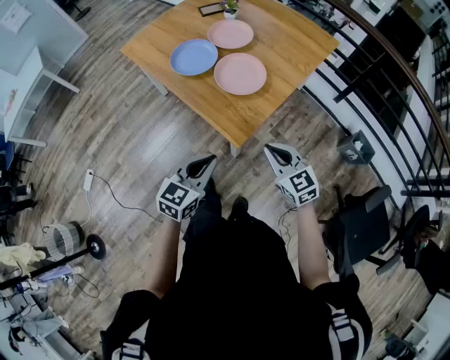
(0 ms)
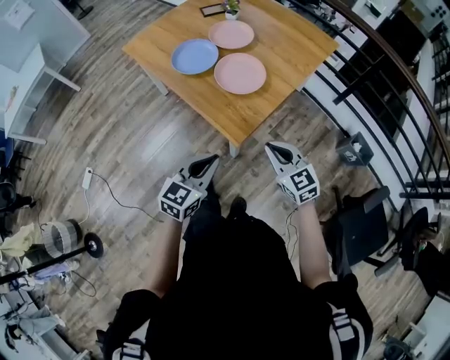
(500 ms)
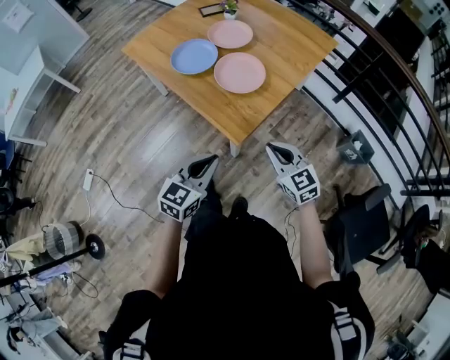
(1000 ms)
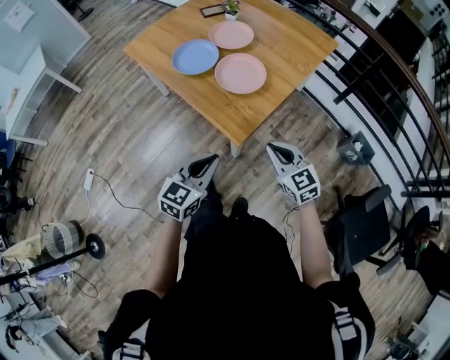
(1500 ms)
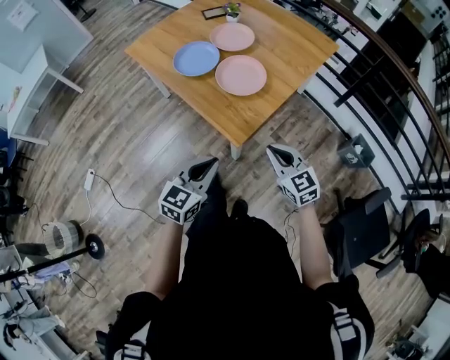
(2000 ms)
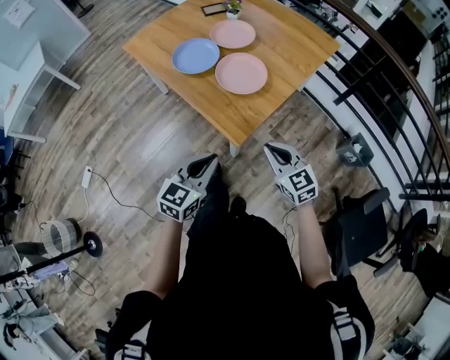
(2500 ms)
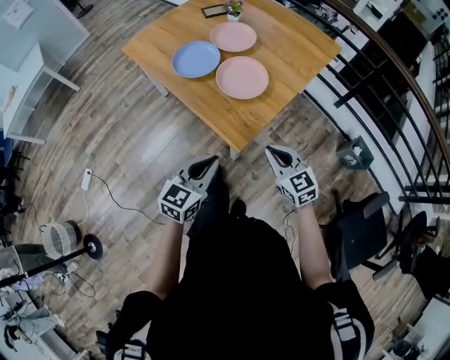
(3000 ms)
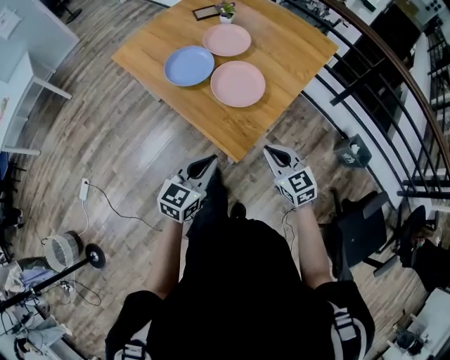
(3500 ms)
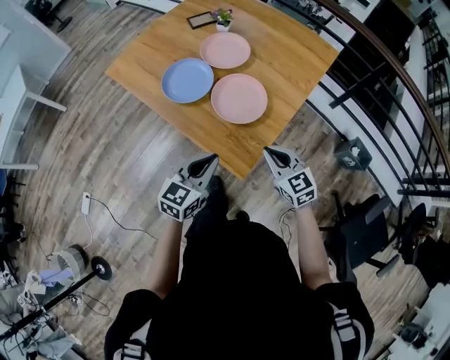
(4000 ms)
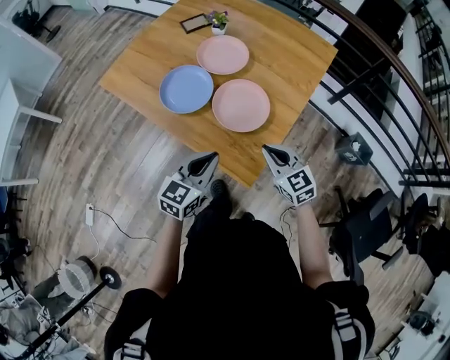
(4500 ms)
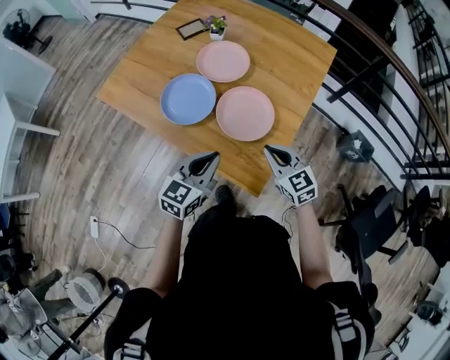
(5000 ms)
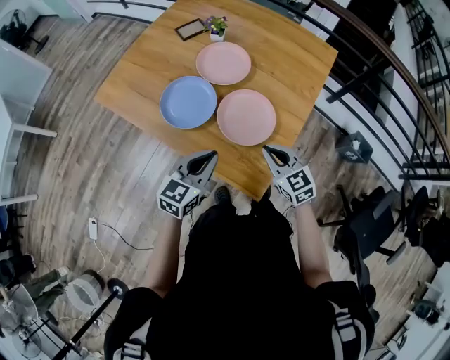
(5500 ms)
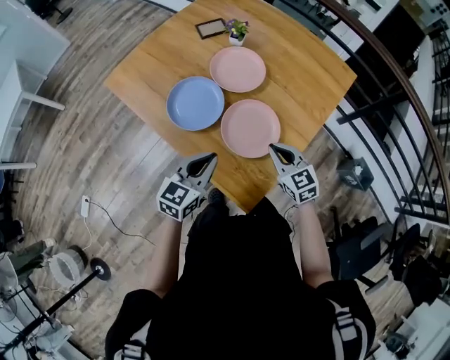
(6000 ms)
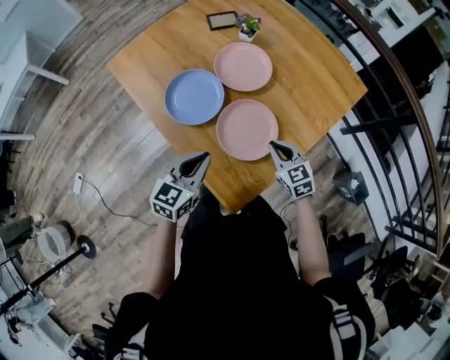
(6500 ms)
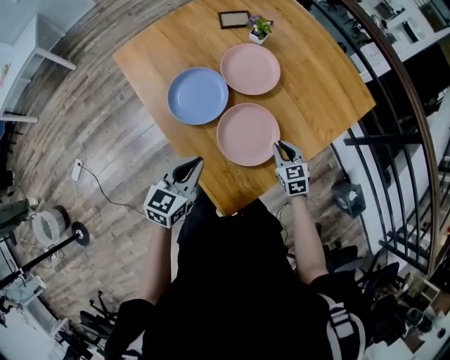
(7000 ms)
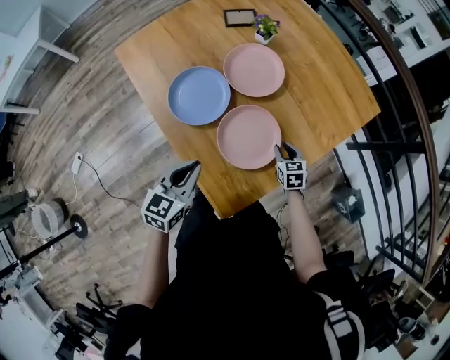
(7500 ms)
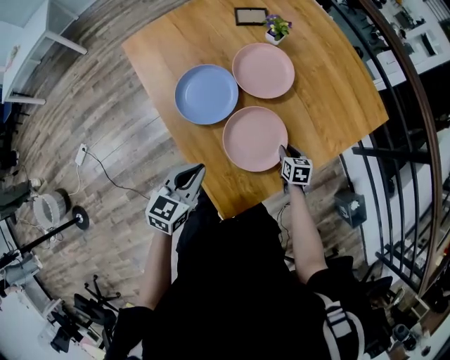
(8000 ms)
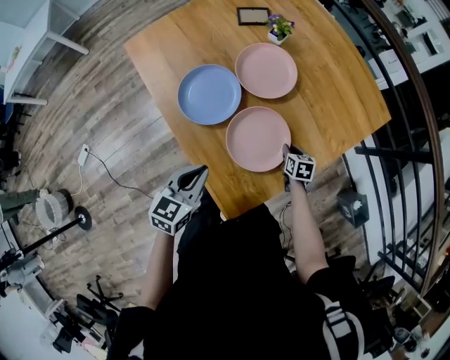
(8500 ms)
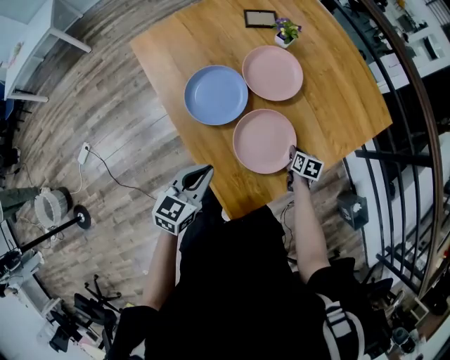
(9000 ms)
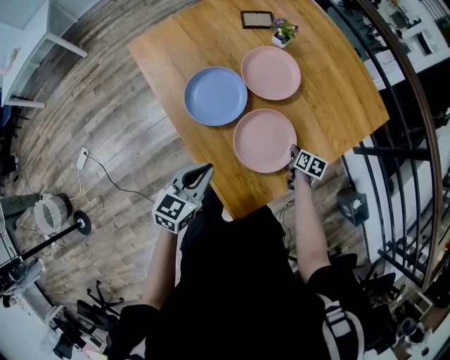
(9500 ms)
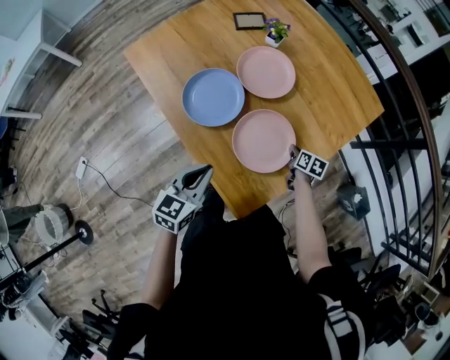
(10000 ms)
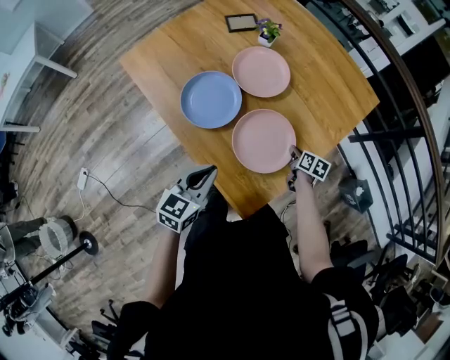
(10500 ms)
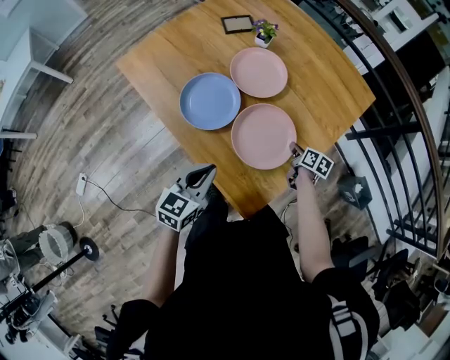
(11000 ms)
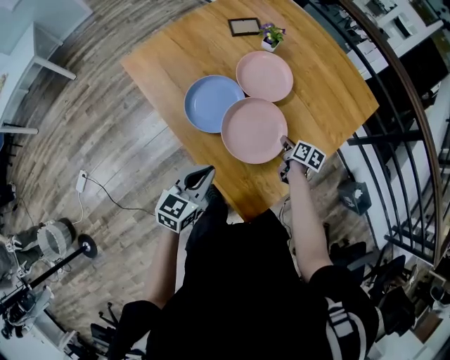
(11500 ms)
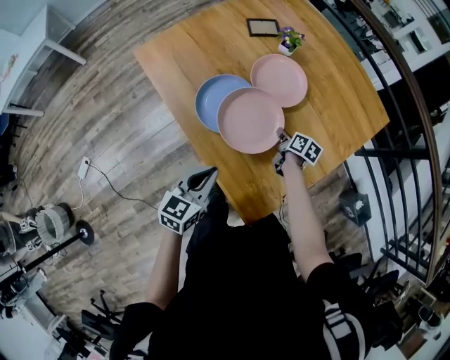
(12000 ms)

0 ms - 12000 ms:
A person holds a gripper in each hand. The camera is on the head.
0 ms - 2000 ms: There are only small adjustments of the grippers.
2000 ms - 4000 ms: Both grippers travel together forward, some 15 cm.
4000 ms - 6000 ms: Both grippers move forward, roughly 15 cm.
6000 ms - 8000 ms: The left gripper changes its angle by roughly 20 degrees; the right gripper travels downward, forward and to the right by some 25 cm, turns by some 30 degrees, and opens up.
8000 ms - 10000 ms: The right gripper turns by about 30 degrees, and closes its fingers.
10000 ms - 12000 ms: The right gripper goes roughly 15 cm to the left and forward.

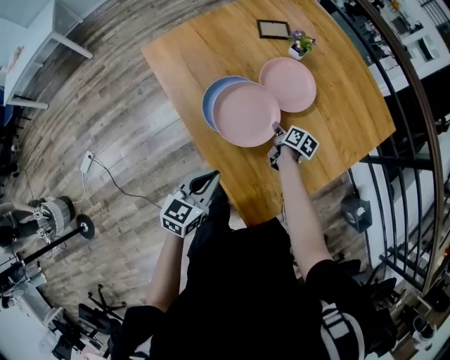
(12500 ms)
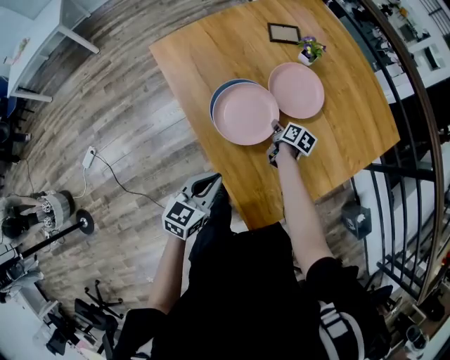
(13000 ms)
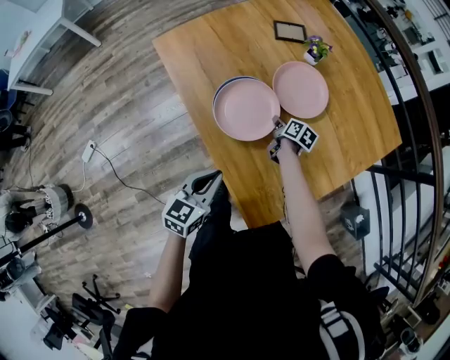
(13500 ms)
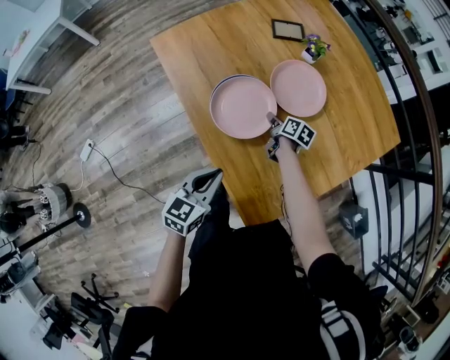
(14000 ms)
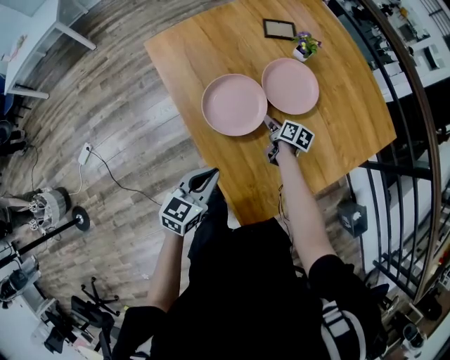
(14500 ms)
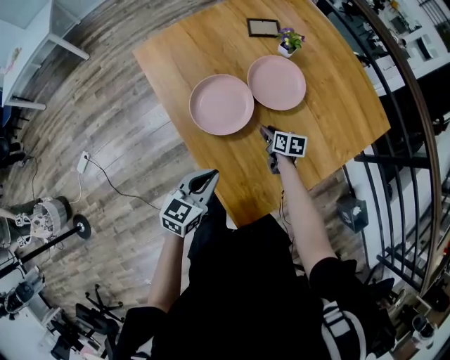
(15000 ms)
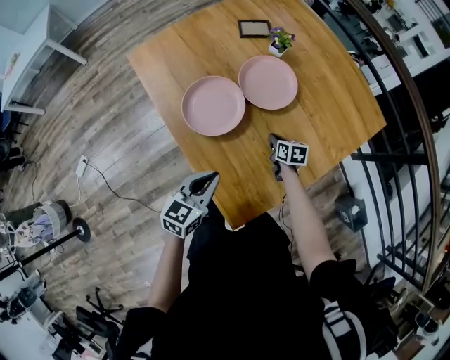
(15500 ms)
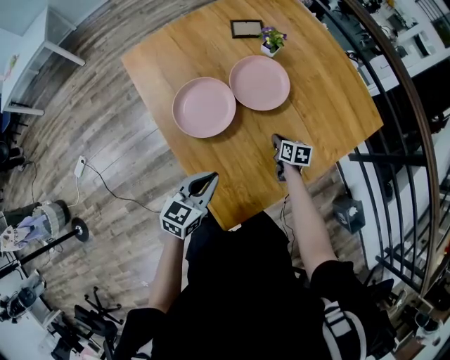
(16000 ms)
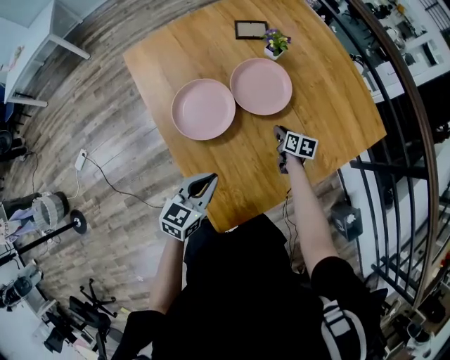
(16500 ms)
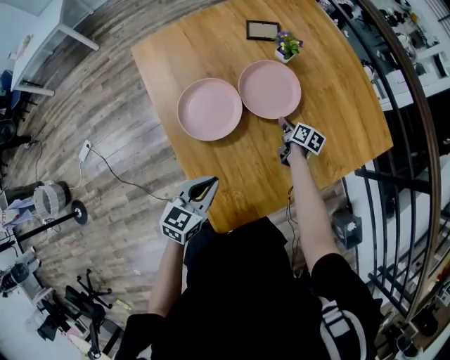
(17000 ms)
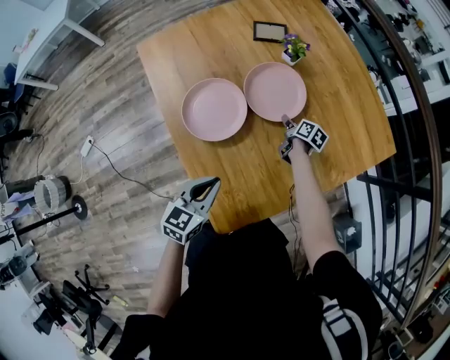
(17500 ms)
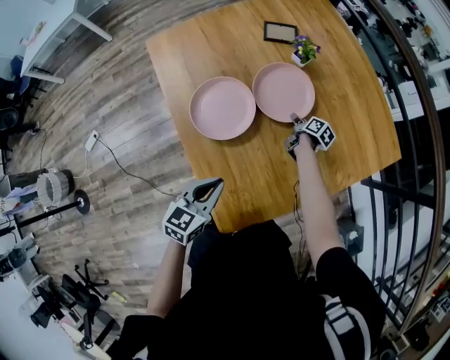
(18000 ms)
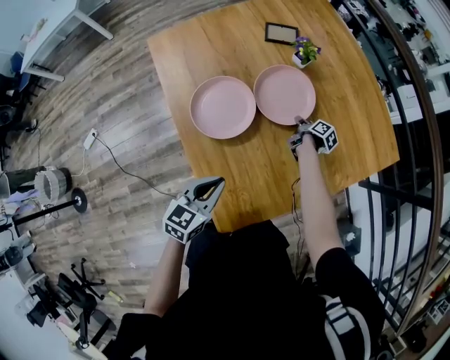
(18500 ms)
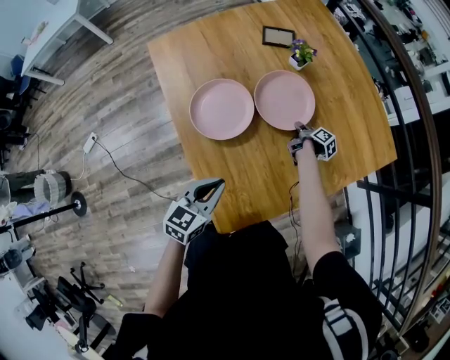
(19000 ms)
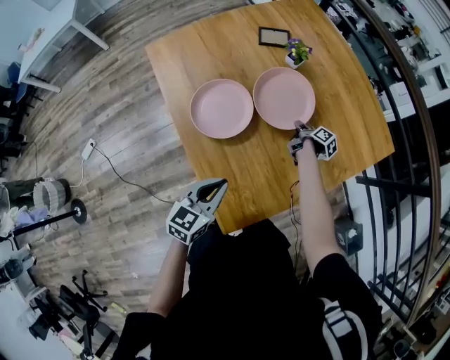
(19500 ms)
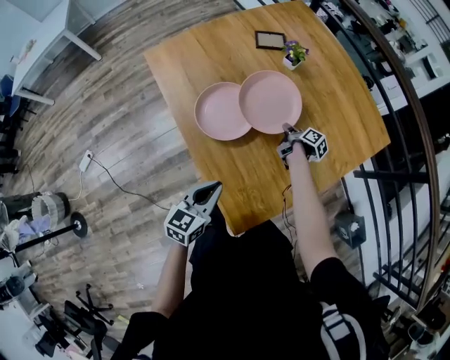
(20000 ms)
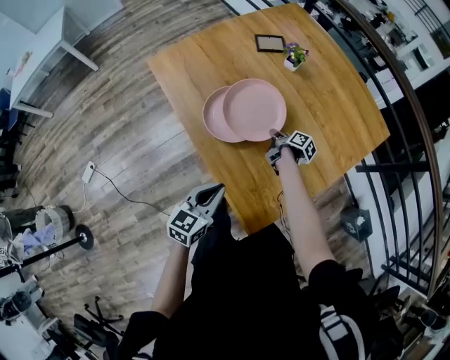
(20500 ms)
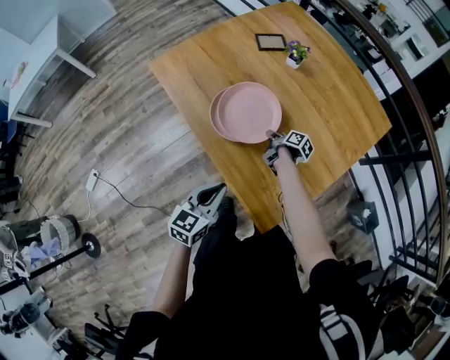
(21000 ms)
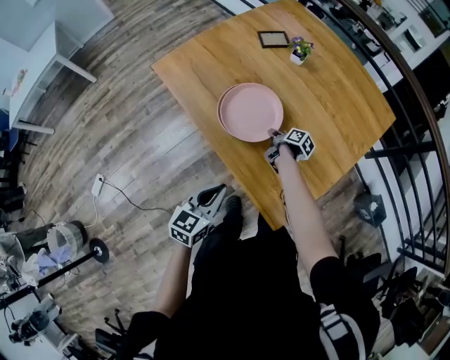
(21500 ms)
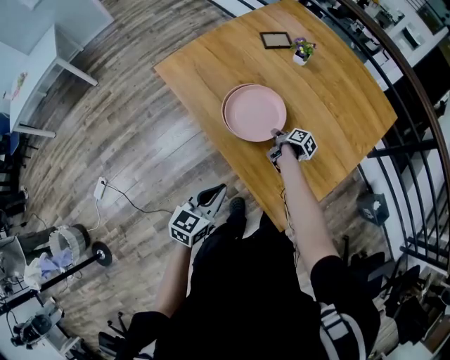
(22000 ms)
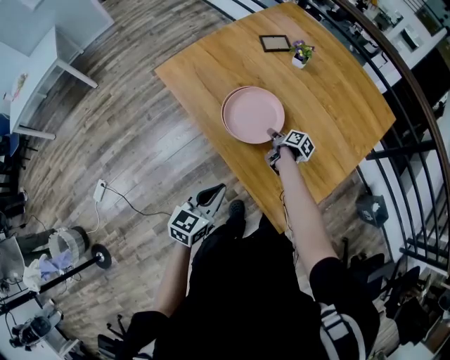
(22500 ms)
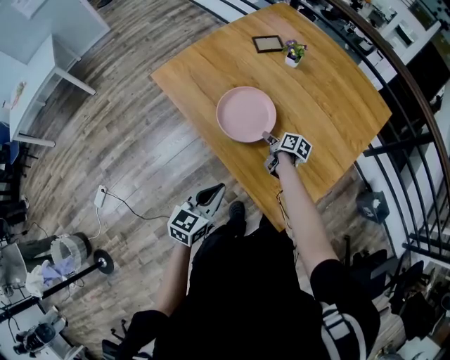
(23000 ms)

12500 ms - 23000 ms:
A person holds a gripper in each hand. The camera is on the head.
12500 ms - 14500 ms: The right gripper opens its fingers.
14500 ms - 16500 ms: The two grippers go approximately 15 cm to the right.
16500 ms - 19000 ms: The right gripper is displaced forward by approximately 5 cm, and rolls clockwise, seen from behind, by roughly 50 degrees.
19000 ms - 21000 ms: The right gripper goes roughly 20 cm to the left and backward. Meanwhile the left gripper goes some 15 cm to the left.
21000 ms - 23000 ms: The left gripper heads to the left, covering about 5 cm, while the right gripper opens its fingers.

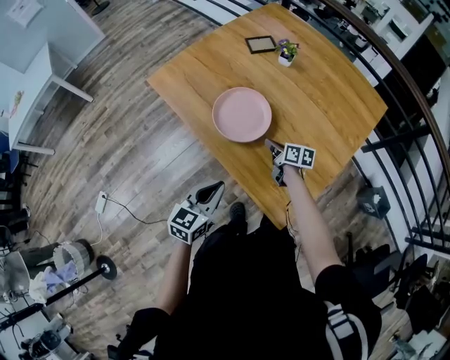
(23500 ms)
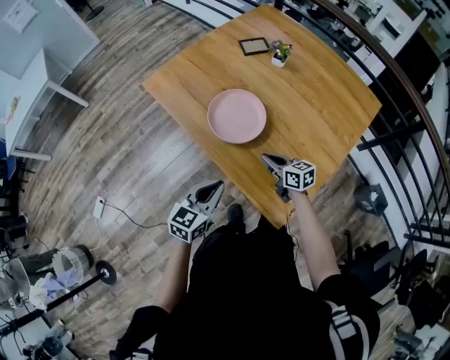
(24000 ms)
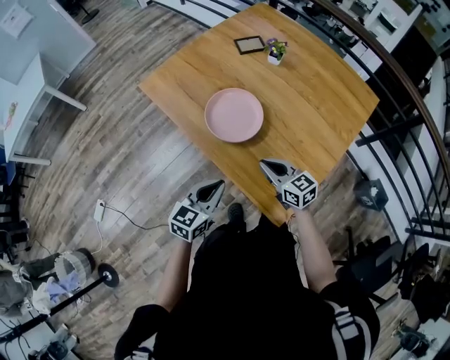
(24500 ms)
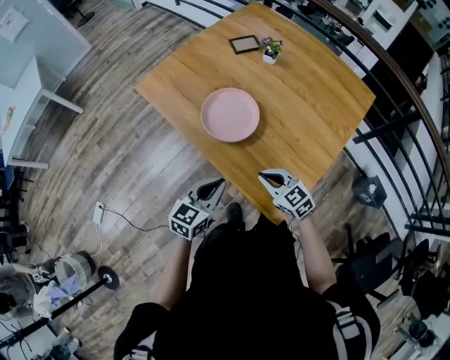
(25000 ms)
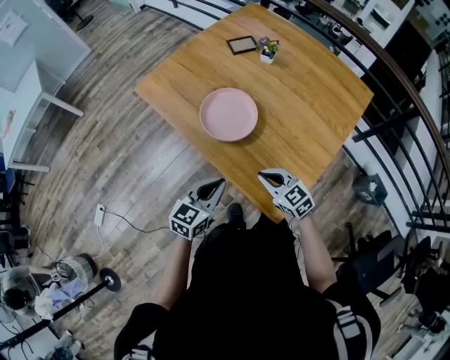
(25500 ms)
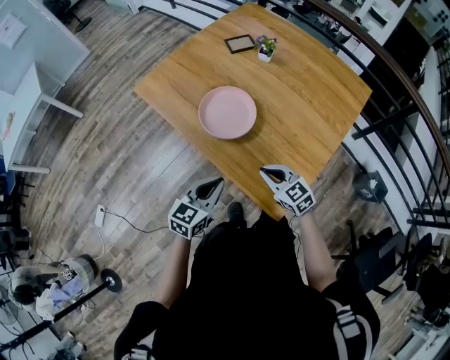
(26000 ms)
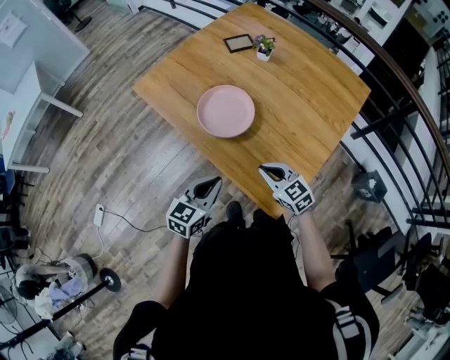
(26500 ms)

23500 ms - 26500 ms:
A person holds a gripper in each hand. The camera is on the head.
23500 ms - 25000 ms: The right gripper travels backward and upward by about 15 cm, and rotates around the line of its fingers by roughly 60 degrees, counterclockwise from behind.
25000 ms - 26500 ms: The grippers make only small movements.

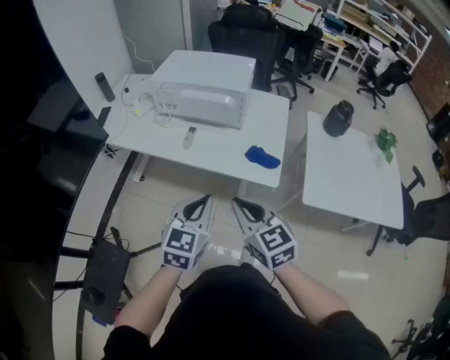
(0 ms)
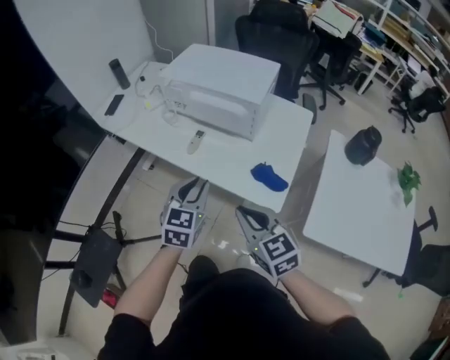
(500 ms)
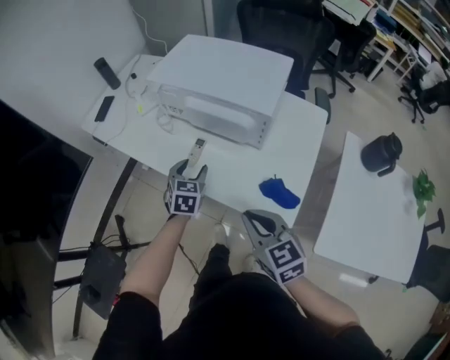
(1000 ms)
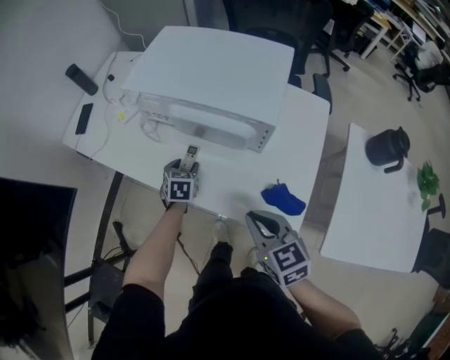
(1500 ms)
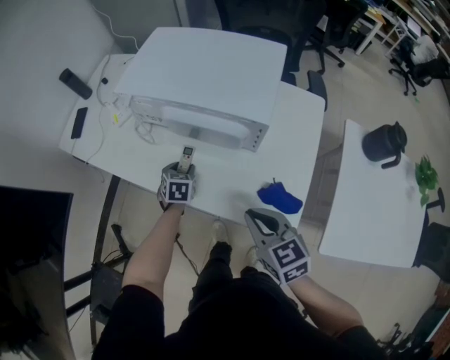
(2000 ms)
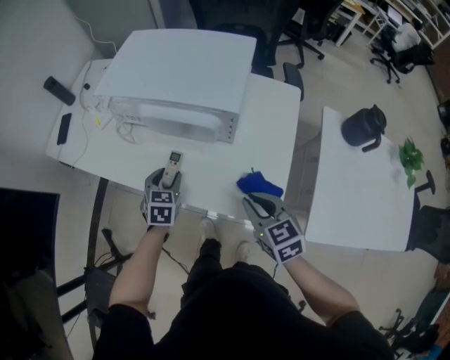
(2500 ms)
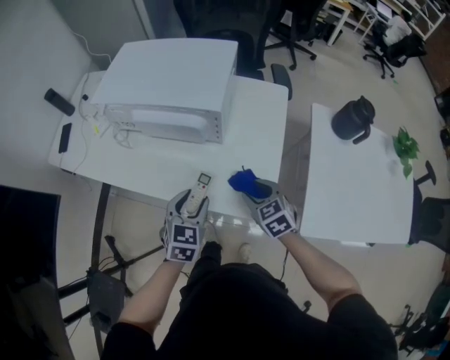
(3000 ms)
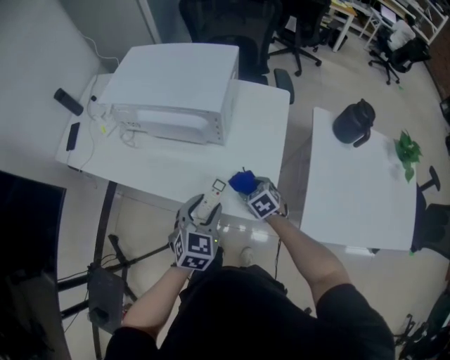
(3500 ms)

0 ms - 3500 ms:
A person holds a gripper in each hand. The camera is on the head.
0 ms - 2000 ms: The right gripper shifts about 30 cm forward, to the right and downward; the left gripper goes about 50 cm forward and downward, tips its fingers downward by about 30 degrees, and opens up.
2000 ms - 3500 ms: The right gripper travels downward and to the right by some 20 cm, swivels roughly 30 degrees, and opens up. The left gripper moves backward, to the right and upward, roughly 30 cm, and changes its angle by roughly 30 degrees.
